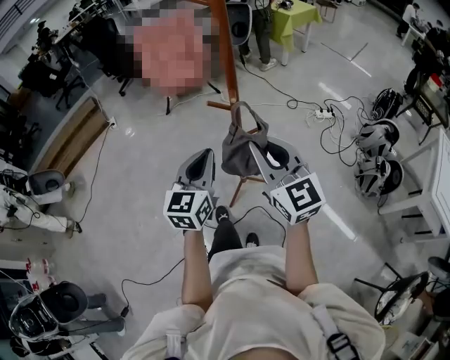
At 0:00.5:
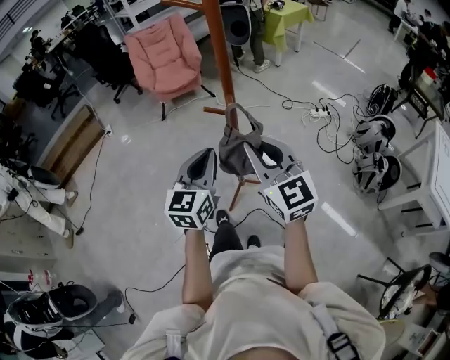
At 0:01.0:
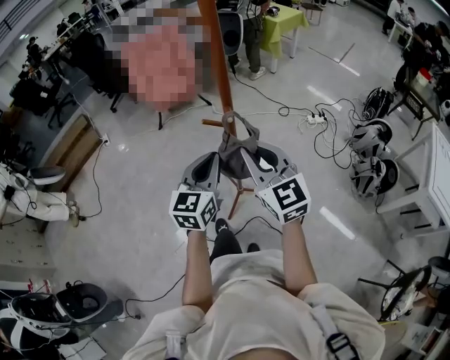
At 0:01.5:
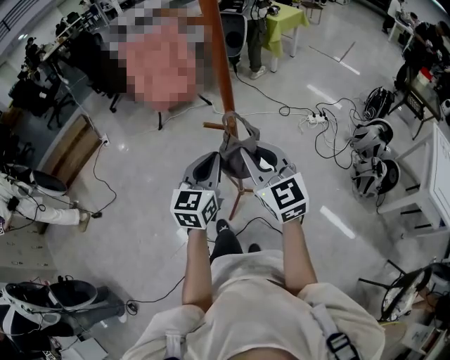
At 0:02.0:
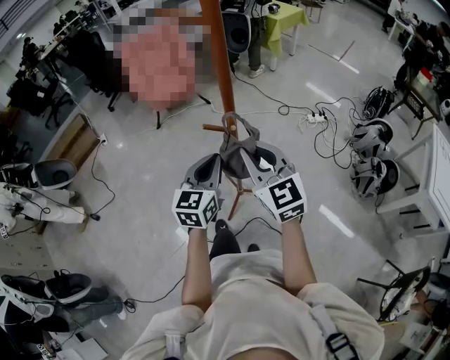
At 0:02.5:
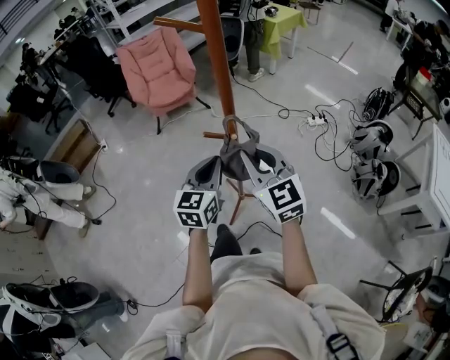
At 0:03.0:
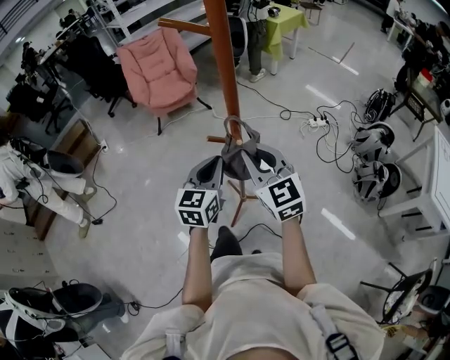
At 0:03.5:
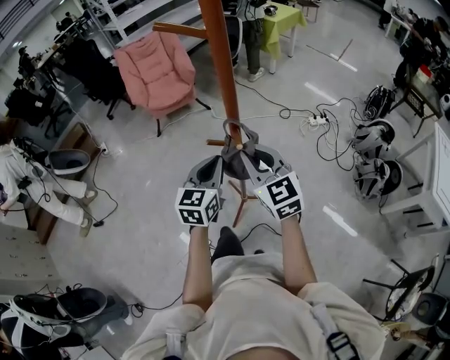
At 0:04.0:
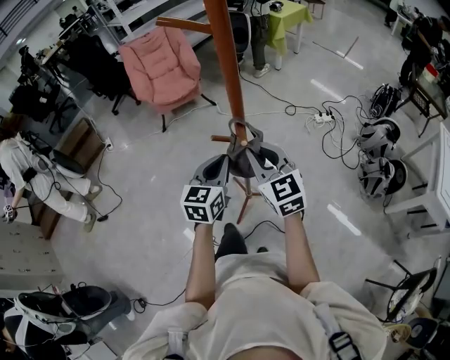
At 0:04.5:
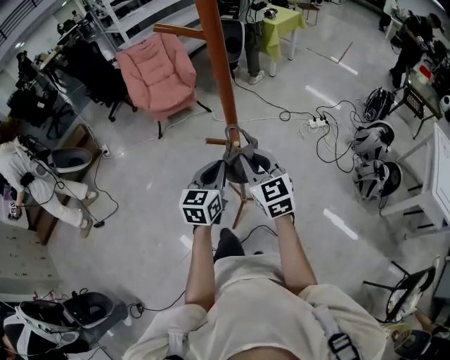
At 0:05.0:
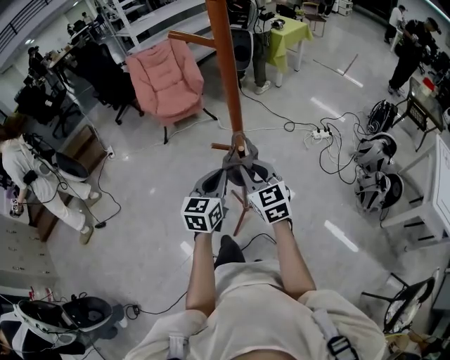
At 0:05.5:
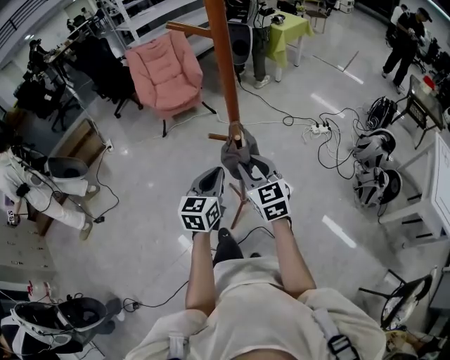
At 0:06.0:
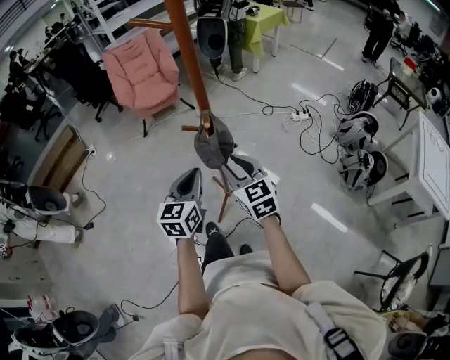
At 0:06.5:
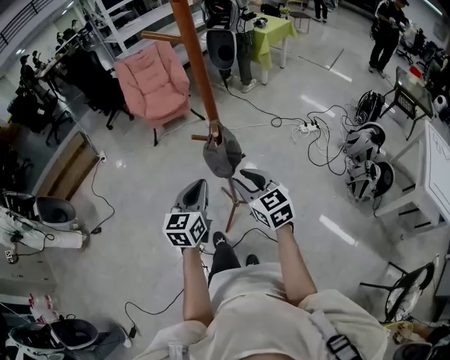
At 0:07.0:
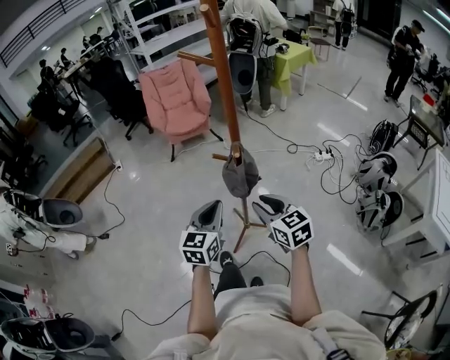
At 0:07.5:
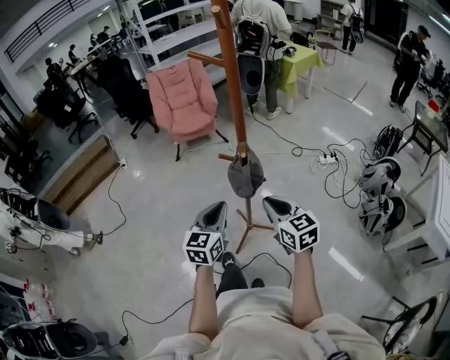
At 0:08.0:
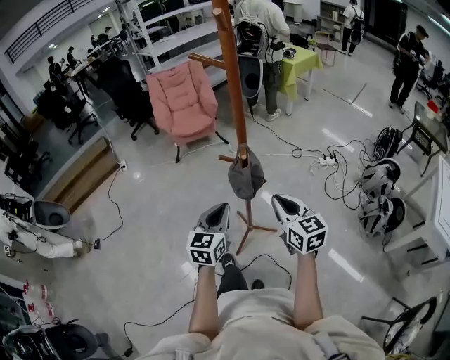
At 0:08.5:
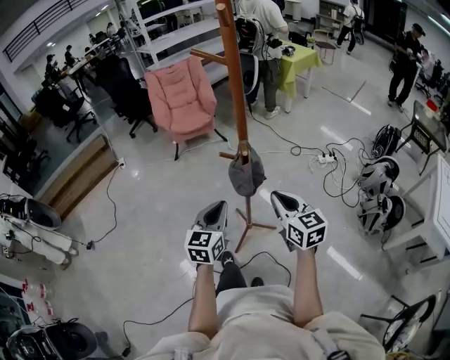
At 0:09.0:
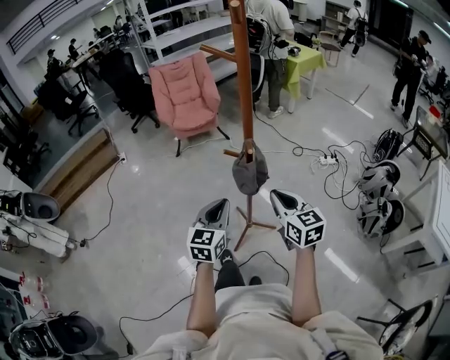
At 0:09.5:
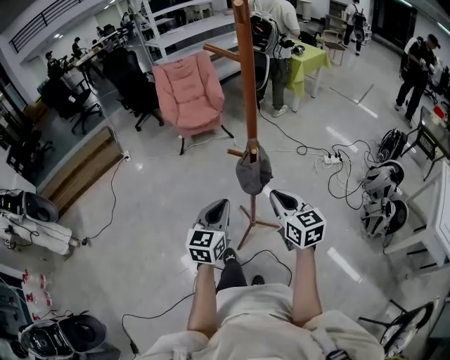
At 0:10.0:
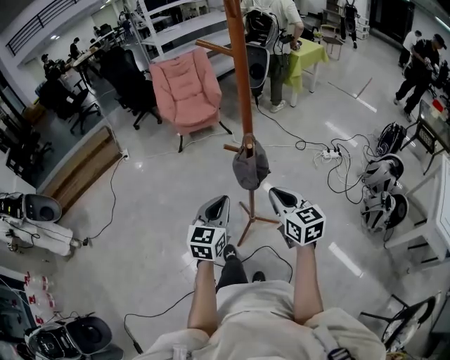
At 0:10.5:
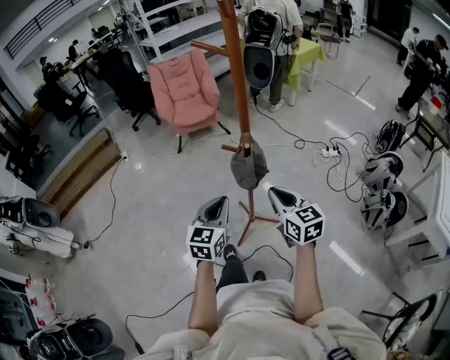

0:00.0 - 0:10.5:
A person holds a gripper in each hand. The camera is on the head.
0:00.0 - 0:02.0: Both grippers move forward, some 5 cm.
0:02.0 - 0:04.0: Both grippers move forward, some 5 cm.
0:04.0 - 0:06.5: The left gripper travels backward by about 10 cm, while the right gripper moves backward and downward, roughly 10 cm, and opens.
0:06.5 - 0:08.5: The right gripper closes.
0:08.5 - 0:10.5: There are only small adjustments of the grippers.

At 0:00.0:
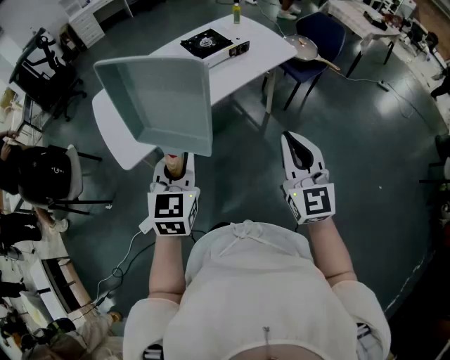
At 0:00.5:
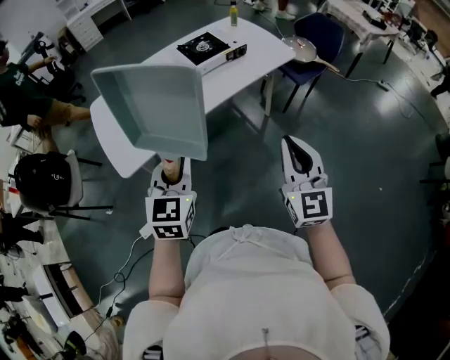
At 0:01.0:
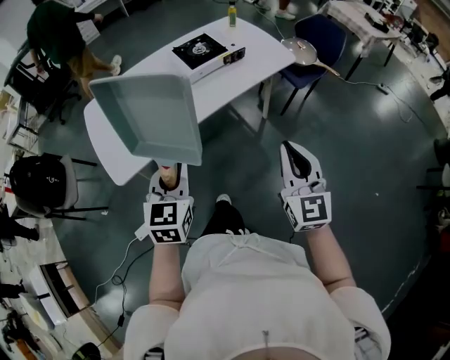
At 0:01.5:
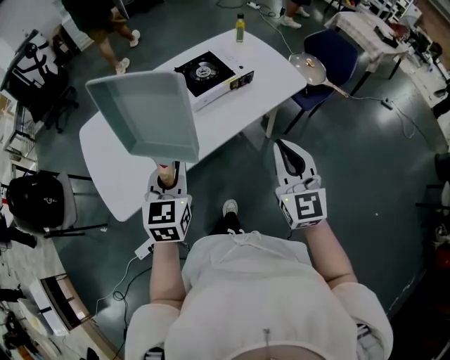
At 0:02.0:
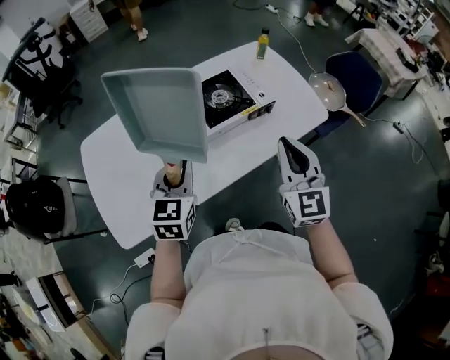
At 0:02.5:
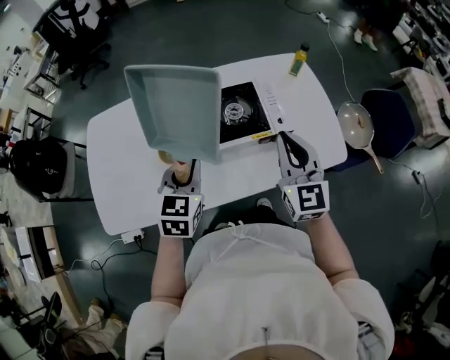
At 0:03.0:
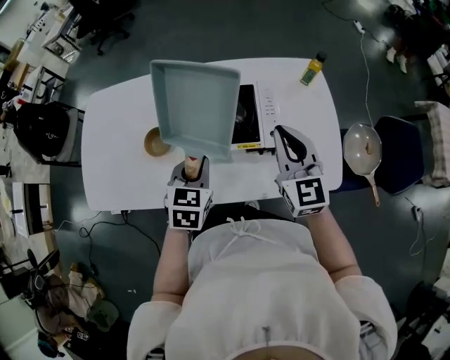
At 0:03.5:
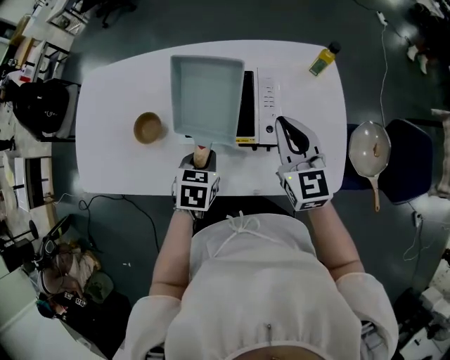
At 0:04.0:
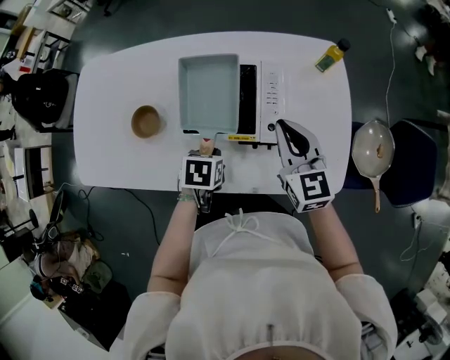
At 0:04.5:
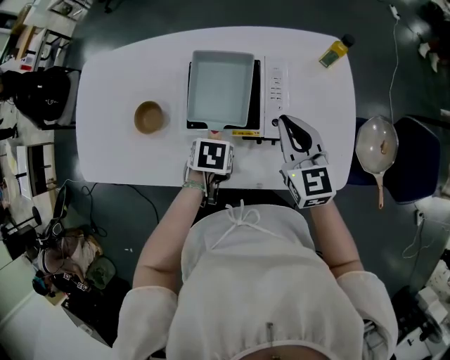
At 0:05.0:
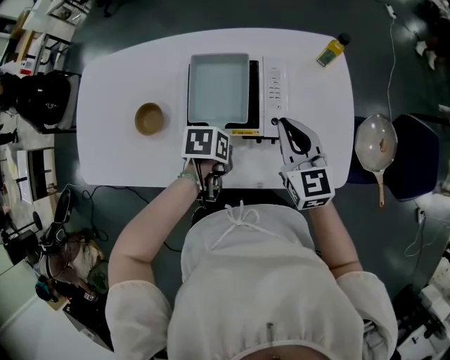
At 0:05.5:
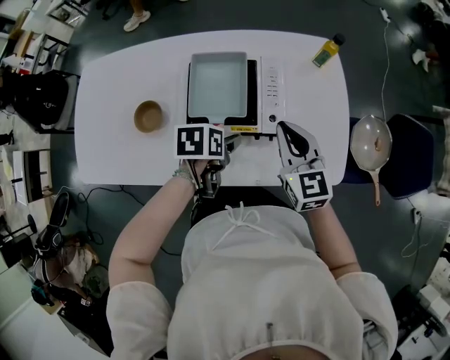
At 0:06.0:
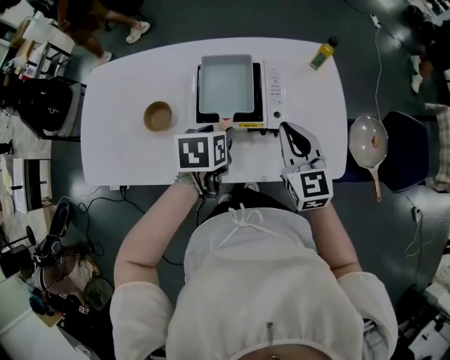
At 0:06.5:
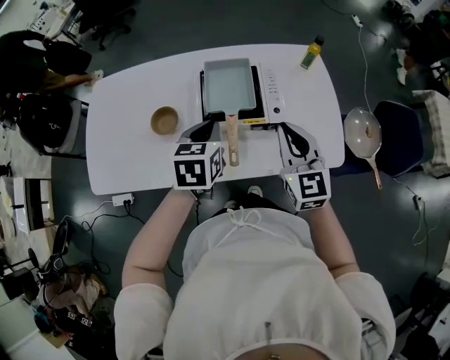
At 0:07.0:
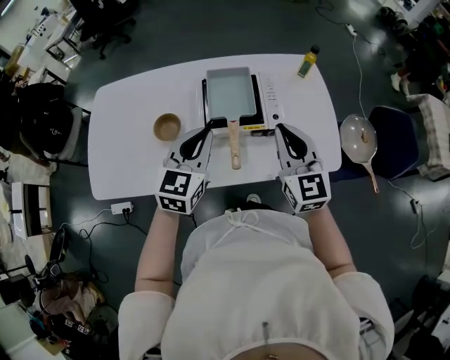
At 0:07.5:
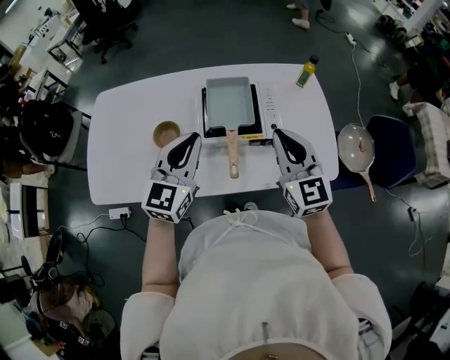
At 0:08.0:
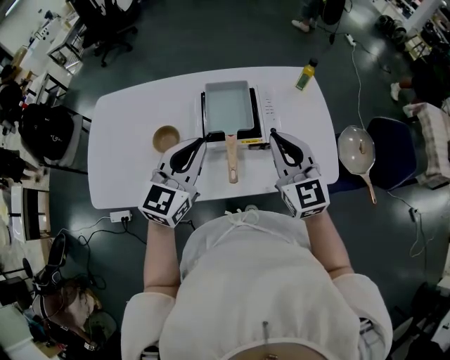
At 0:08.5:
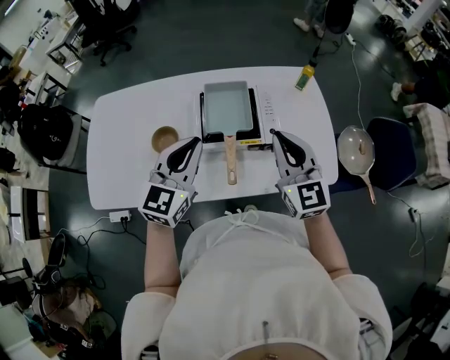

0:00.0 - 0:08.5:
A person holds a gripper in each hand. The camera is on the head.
0:00.0 - 0:02.0: Both grippers travel together forward, roughly 40 cm.
0:02.0 - 0:04.0: The right gripper changes place by some 35 cm, and changes its angle by approximately 40 degrees. Meanwhile the left gripper goes some 25 cm downward, and angles its fingers downward, by roughly 40 degrees.
0:04.0 - 0:06.5: The left gripper moves upward, approximately 20 cm, rotates approximately 30 degrees, and opens, then closes once more; the right gripper shifts by about 15 cm.
0:06.5 - 0:08.5: The left gripper travels upward by approximately 10 cm, and points its fingers roughly 30 degrees further upward; the right gripper ends up roughly 5 cm from where it was.

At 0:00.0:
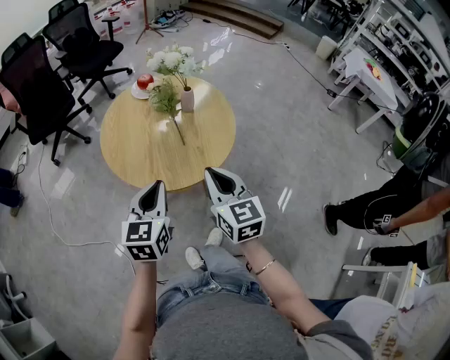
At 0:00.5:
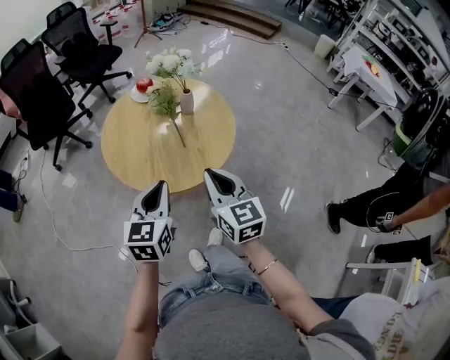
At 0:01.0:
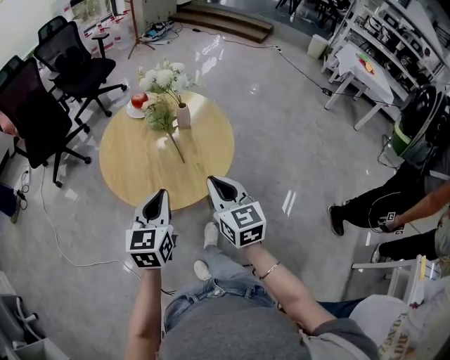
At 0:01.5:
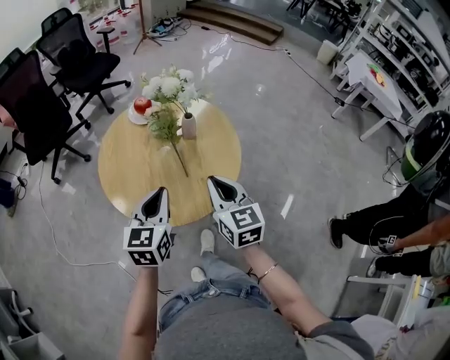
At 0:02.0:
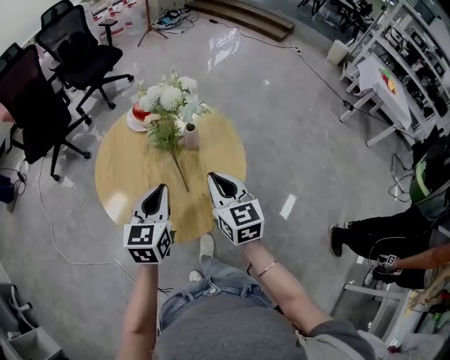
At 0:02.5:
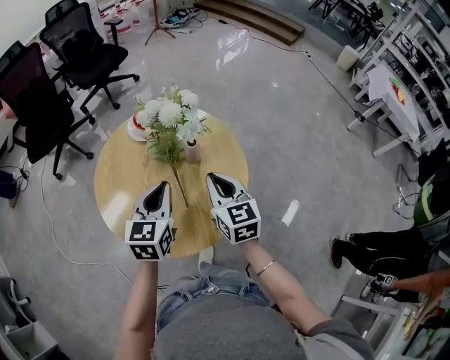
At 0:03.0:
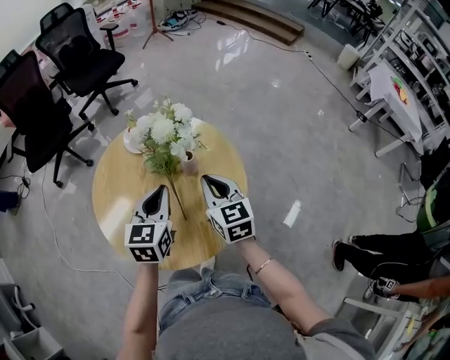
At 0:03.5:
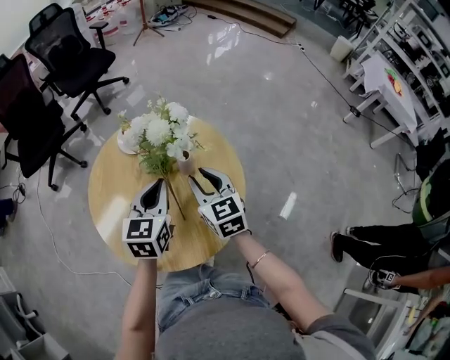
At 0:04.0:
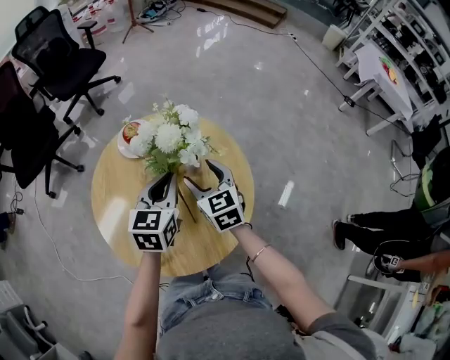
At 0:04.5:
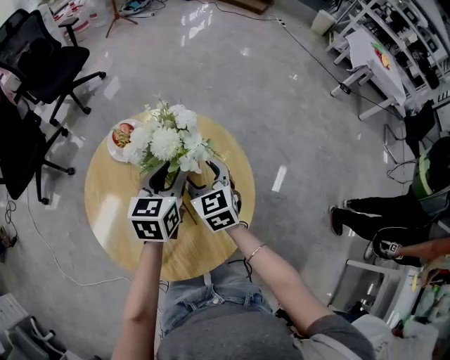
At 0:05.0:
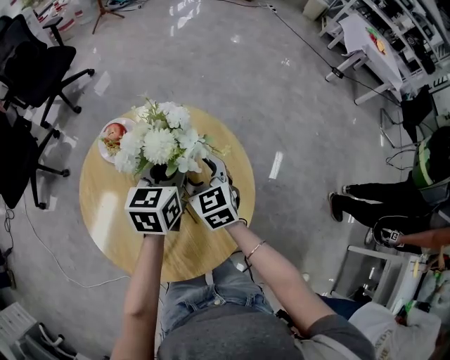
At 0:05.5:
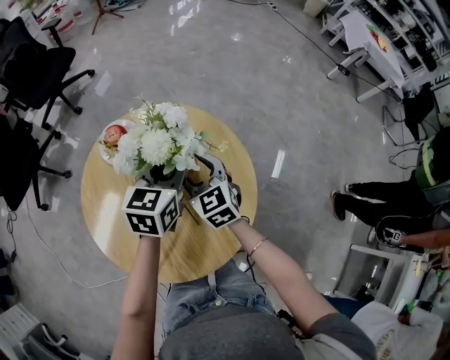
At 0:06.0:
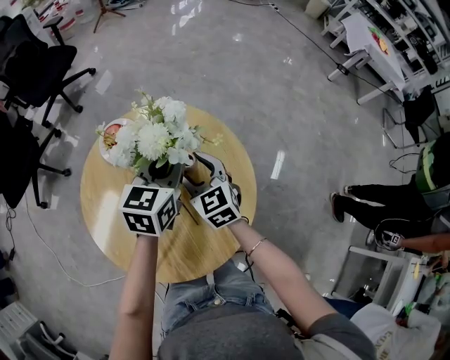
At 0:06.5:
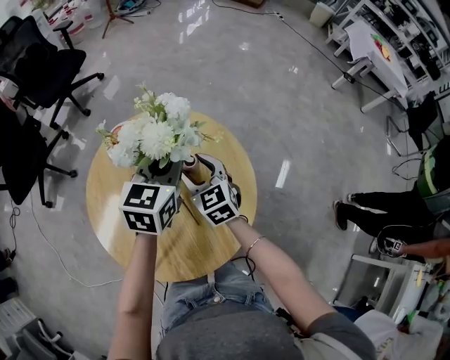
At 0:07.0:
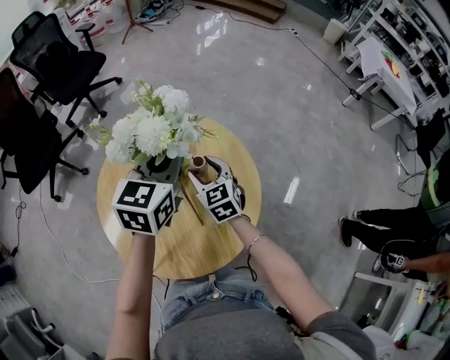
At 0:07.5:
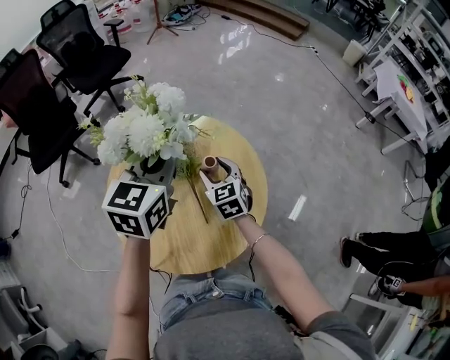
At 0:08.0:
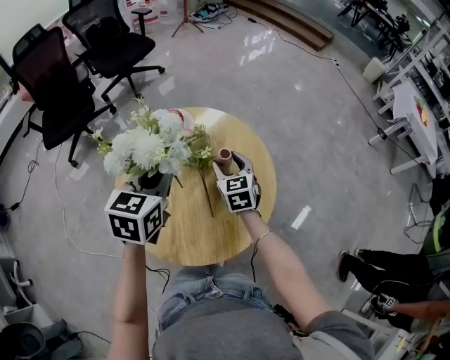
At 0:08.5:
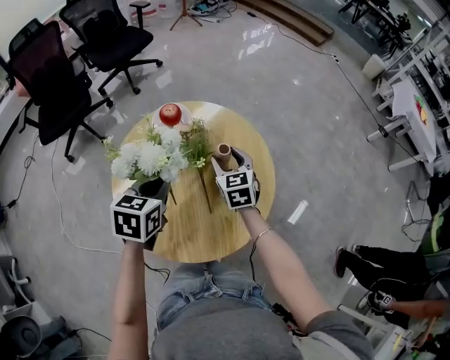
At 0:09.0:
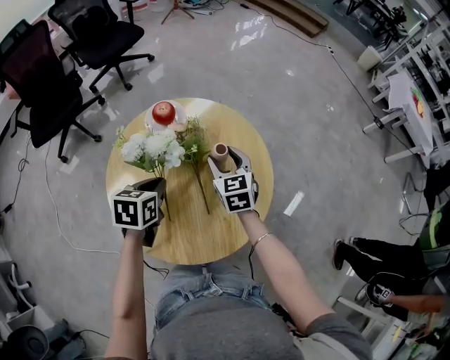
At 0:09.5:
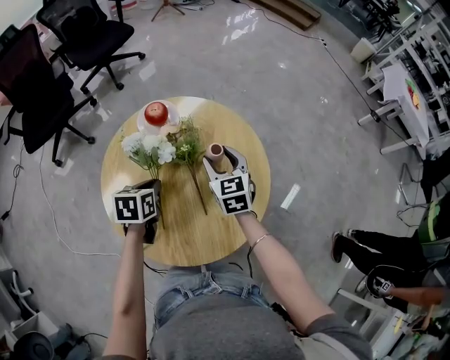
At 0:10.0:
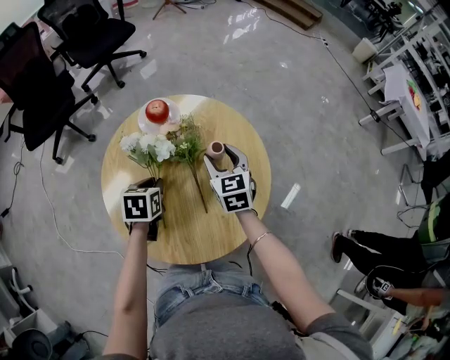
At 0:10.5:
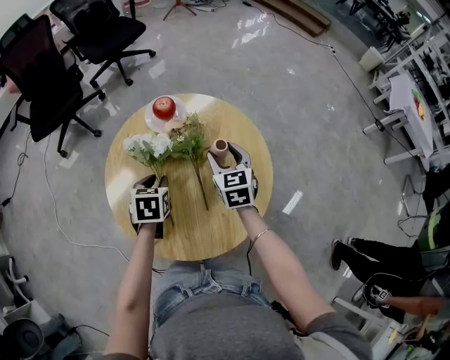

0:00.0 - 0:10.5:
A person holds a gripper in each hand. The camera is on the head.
0:00.0 - 0:02.0: Both grippers travel together forward, some 20 cm.
0:02.0 - 0:04.0: Both grippers move forward, roughly 15 cm. The right gripper opens up.
0:04.0 - 0:06.5: The left gripper is displaced forward by roughly 5 cm, and opens, then closes once more.
0:06.5 - 0:08.5: The left gripper travels backward and to the left by roughly 20 cm, reaches about 10 cm upward, then returns, and turns by approximately 30 degrees.
0:08.5 - 0:10.5: The left gripper shifts approximately 10 cm downward, and opens.
